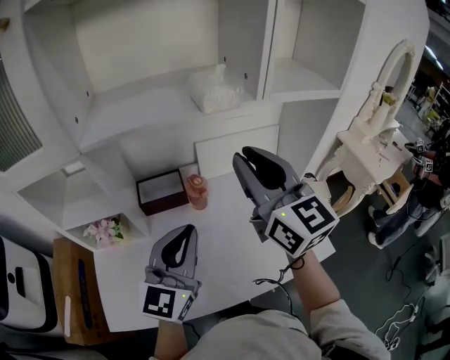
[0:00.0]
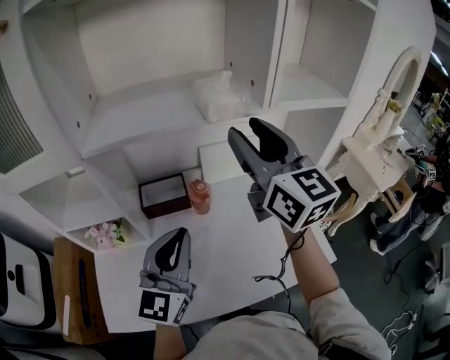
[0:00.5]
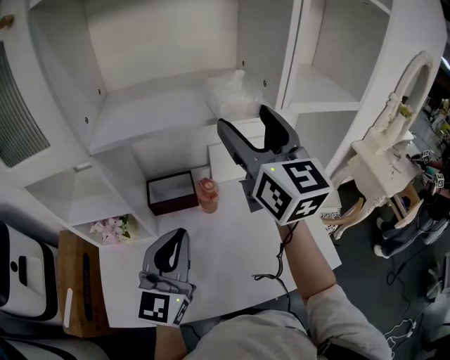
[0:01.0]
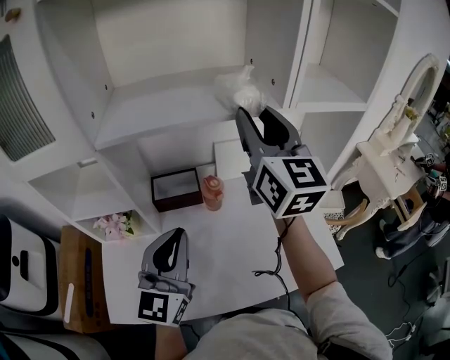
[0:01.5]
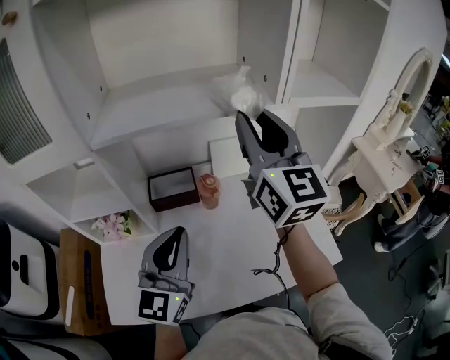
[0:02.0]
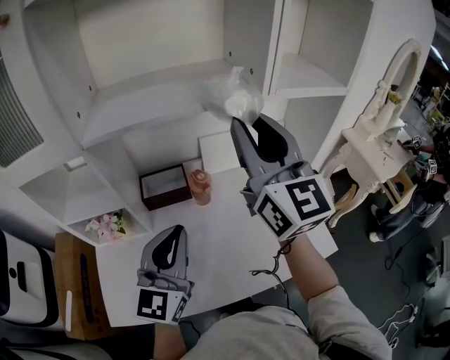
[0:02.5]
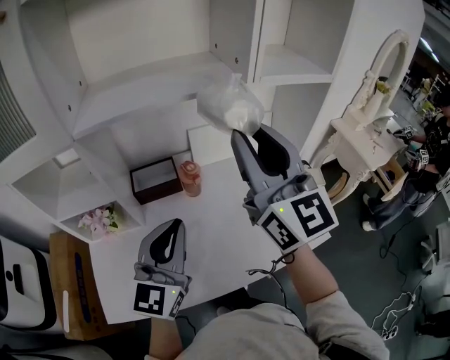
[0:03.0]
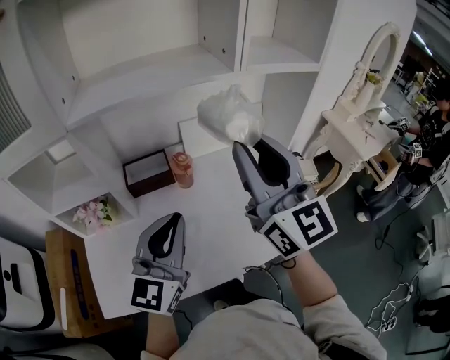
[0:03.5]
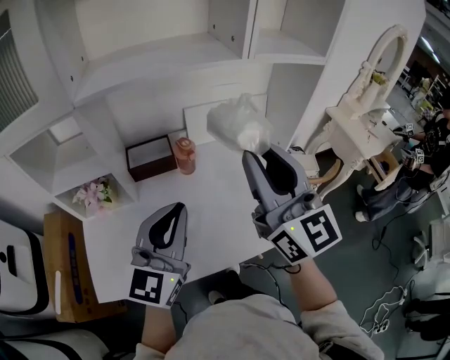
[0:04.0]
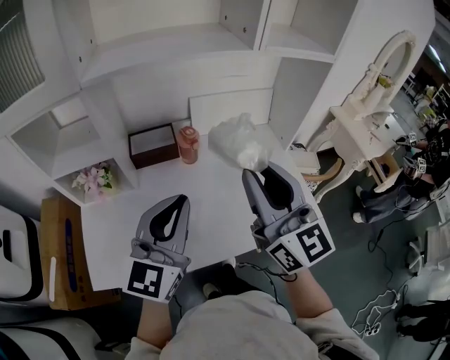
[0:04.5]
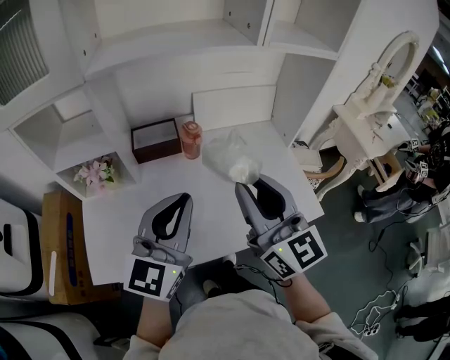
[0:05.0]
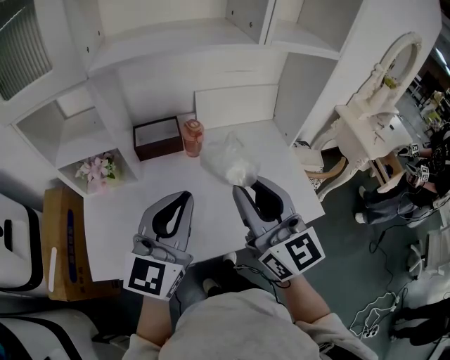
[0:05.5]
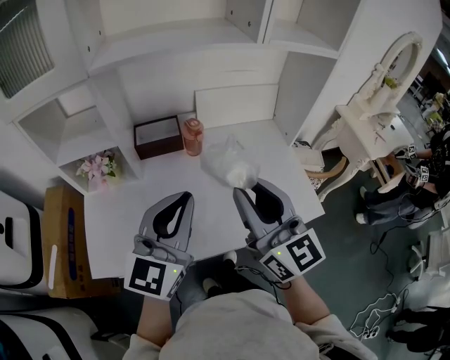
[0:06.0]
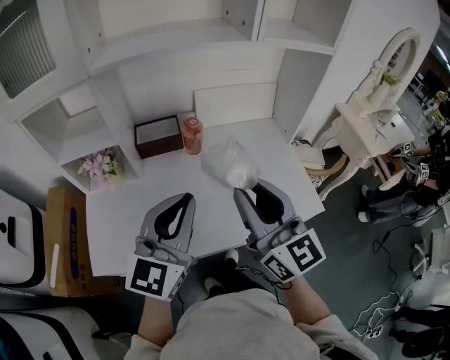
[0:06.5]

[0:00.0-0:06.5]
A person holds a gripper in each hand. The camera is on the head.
0:00.0 to 0:02.0: The right gripper shifts some 5 cm forward, and opens, then closes once more.
0:02.0 to 0:04.5: The right gripper shifts roughly 25 cm backward and downward, while the left gripper goes about 10 cm backward.
0:04.5 to 0:06.5: The right gripper heads backward, covering roughly 5 cm.

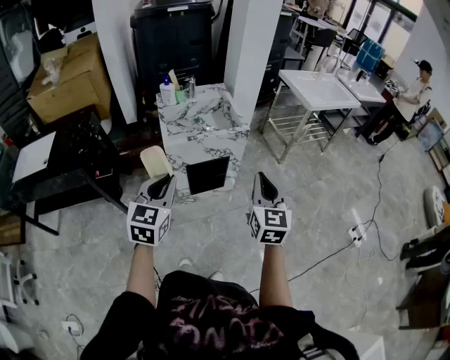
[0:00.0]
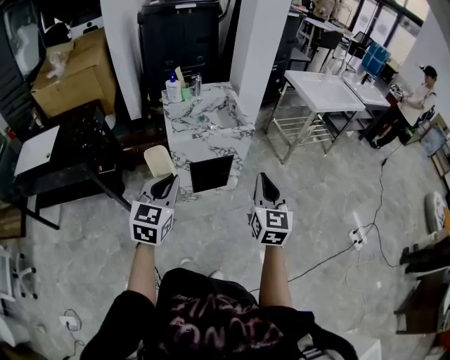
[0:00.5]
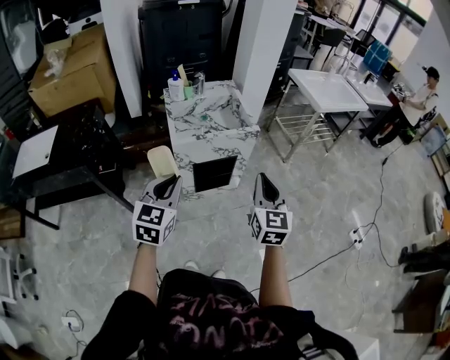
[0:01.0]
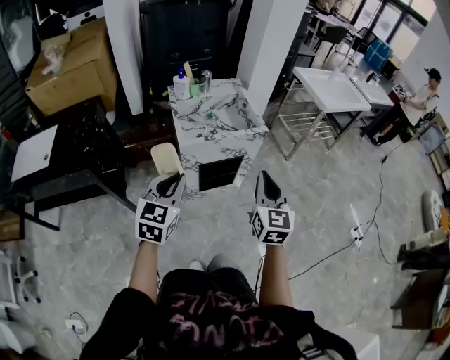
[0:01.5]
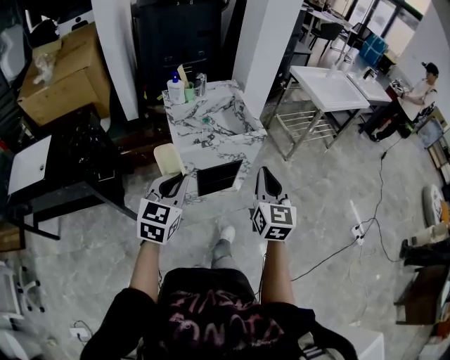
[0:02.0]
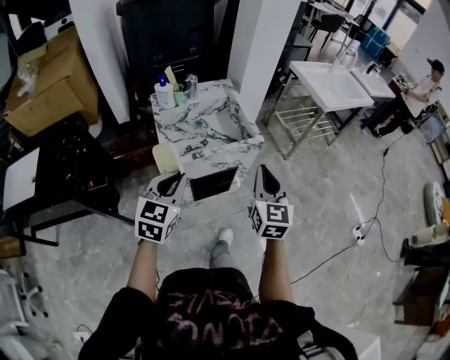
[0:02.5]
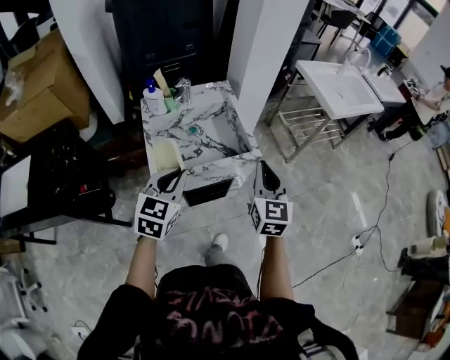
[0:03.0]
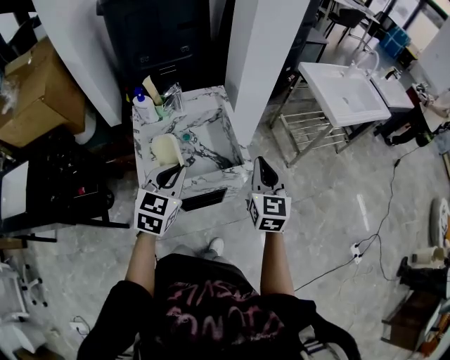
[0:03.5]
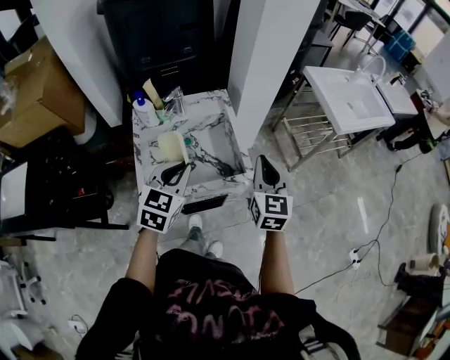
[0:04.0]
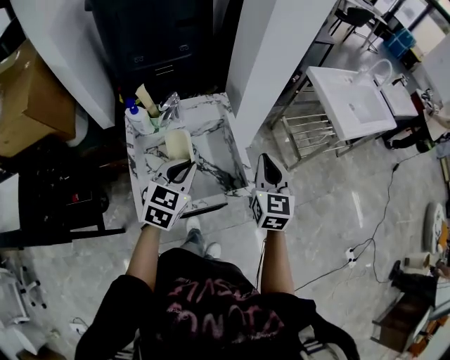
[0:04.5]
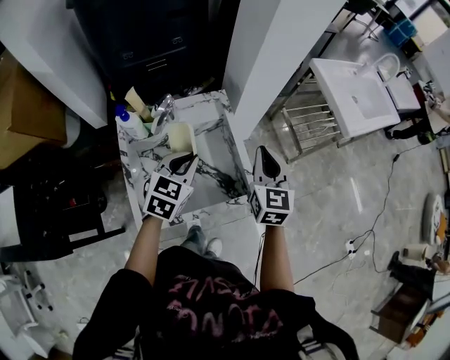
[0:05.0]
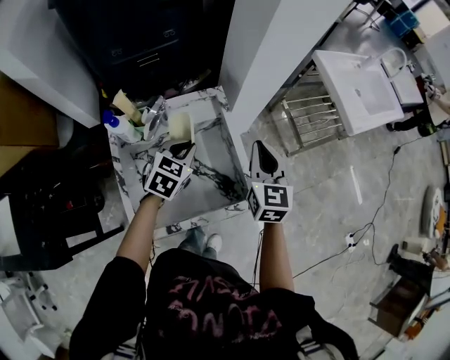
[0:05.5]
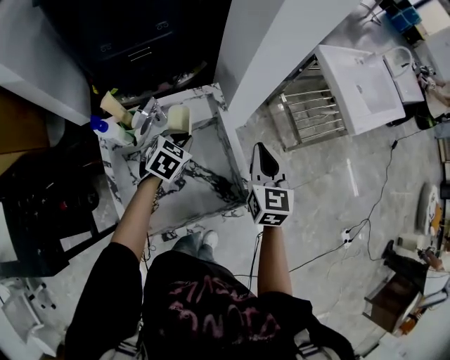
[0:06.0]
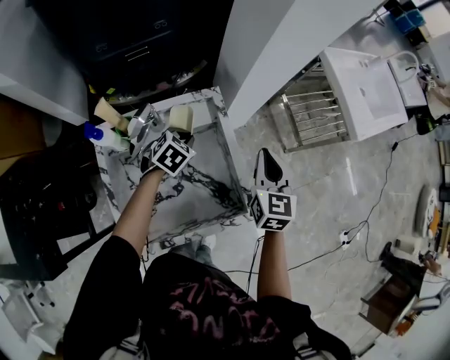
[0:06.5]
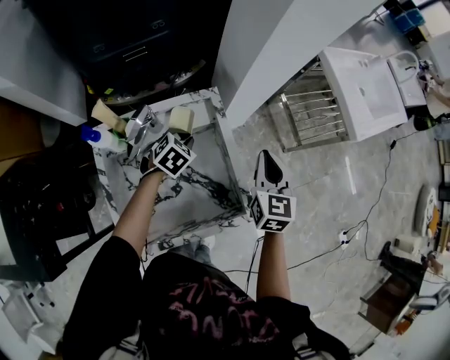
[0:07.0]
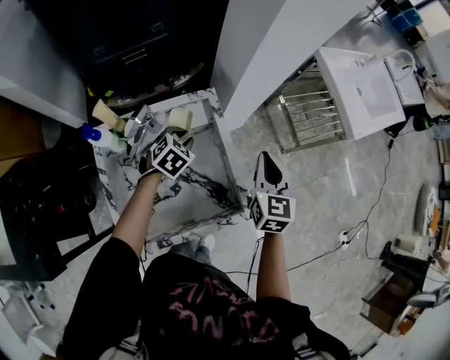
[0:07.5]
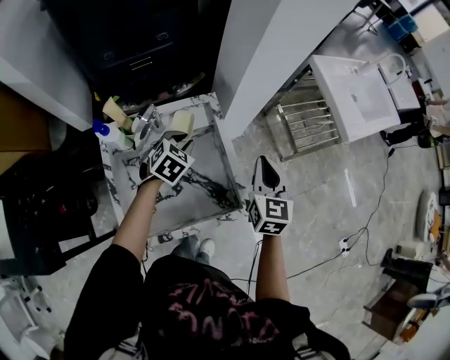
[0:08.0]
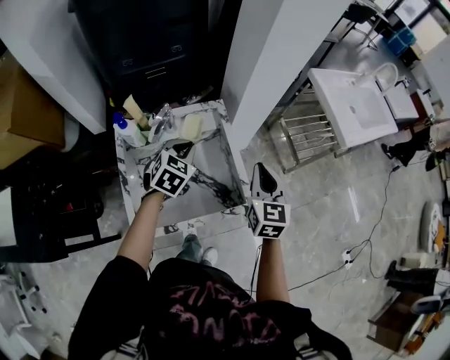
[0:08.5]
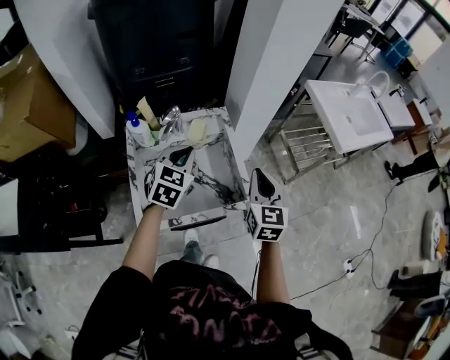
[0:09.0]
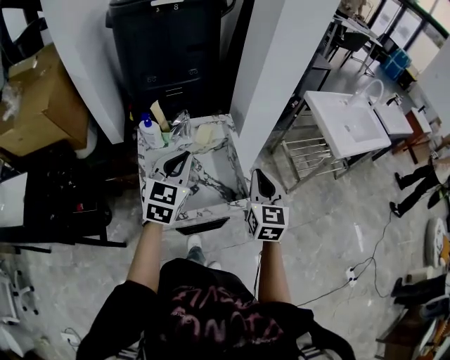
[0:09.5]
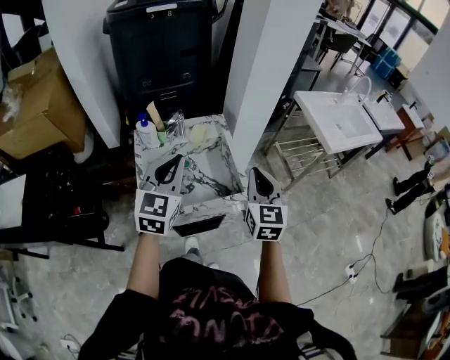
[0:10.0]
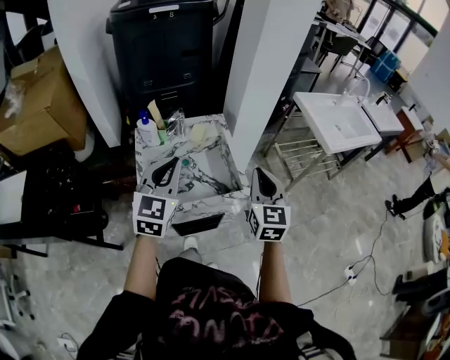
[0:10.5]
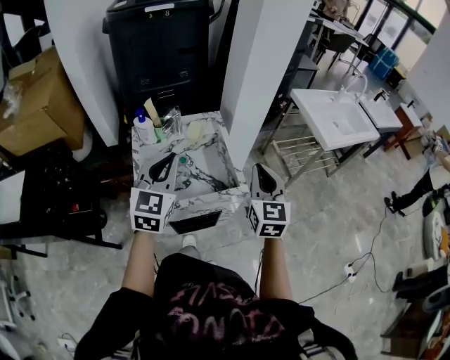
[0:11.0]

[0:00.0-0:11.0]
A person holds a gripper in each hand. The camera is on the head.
0:00.0 to 0:02.0: The left gripper shifts some 10 cm forward and to the left. Meanwhile the right gripper shifts about 15 cm to the left and forward.
0:02.0 to 0:03.5: The grippers both shift forward by about 30 cm.
0:03.5 to 0:05.5: The right gripper shifts some 20 cm forward. Meanwhile the left gripper goes some 30 cm forward and downward.
0:05.5 to 0:07.5: The left gripper shifts roughly 15 cm downward and forward, while the right gripper changes place by roughly 5 cm.
0:07.5 to 0:09.0: The right gripper shifts about 15 cm backward and upward, while the left gripper moves upward and backward, some 25 cm, and rotates roughly 30 degrees.
0:09.0 to 0:11.0: The right gripper moves backward and upward, approximately 10 cm; the left gripper goes some 20 cm backward and upward, and changes its angle by about 20 degrees.

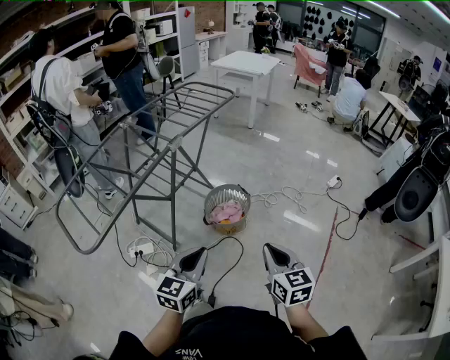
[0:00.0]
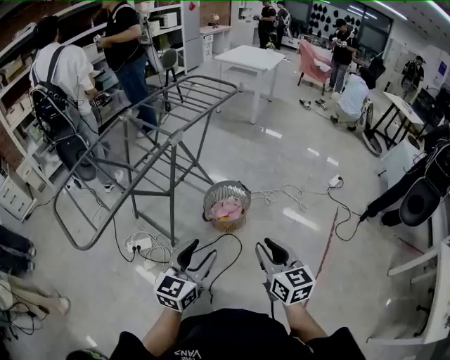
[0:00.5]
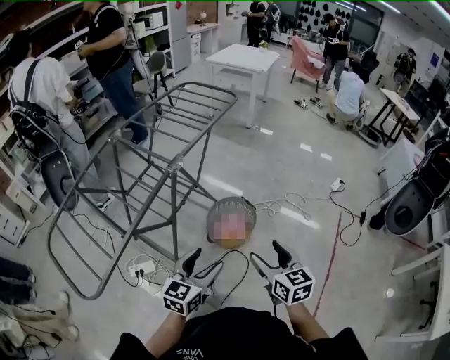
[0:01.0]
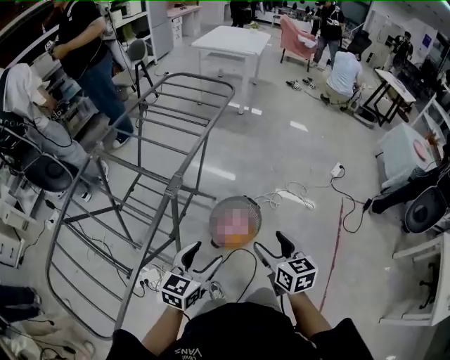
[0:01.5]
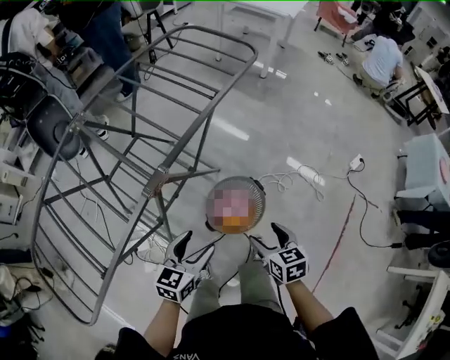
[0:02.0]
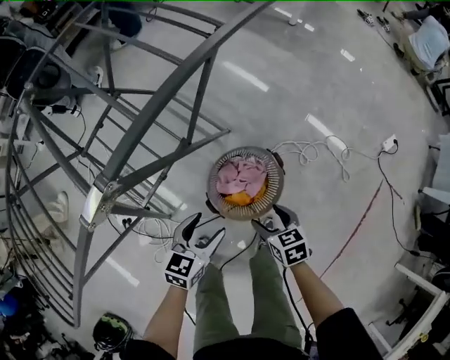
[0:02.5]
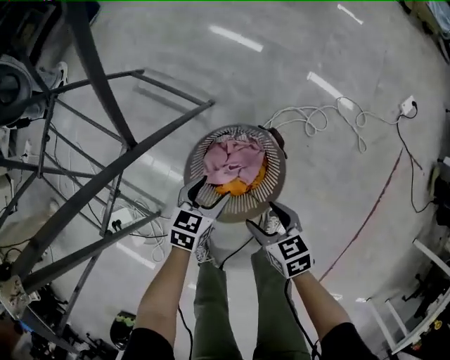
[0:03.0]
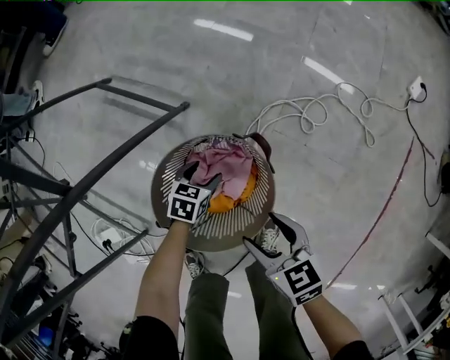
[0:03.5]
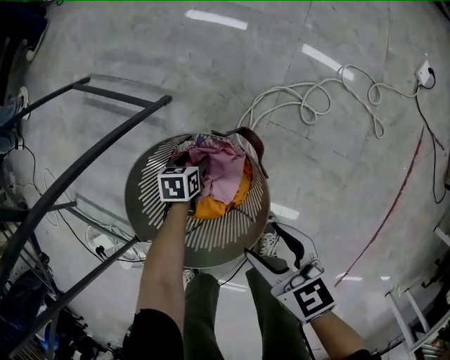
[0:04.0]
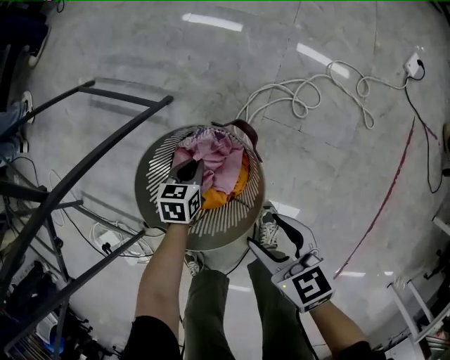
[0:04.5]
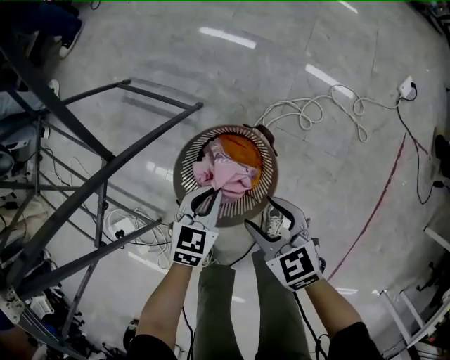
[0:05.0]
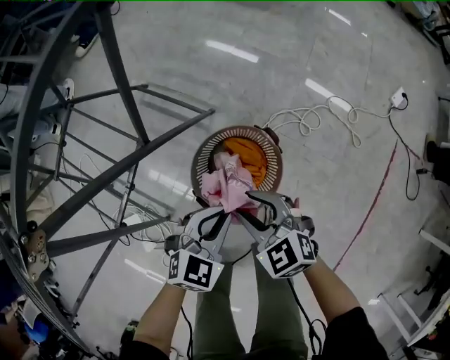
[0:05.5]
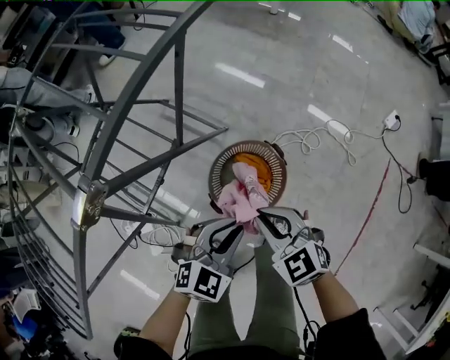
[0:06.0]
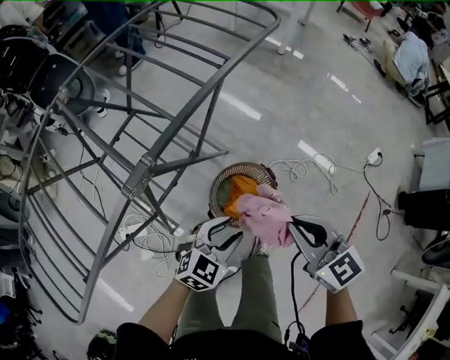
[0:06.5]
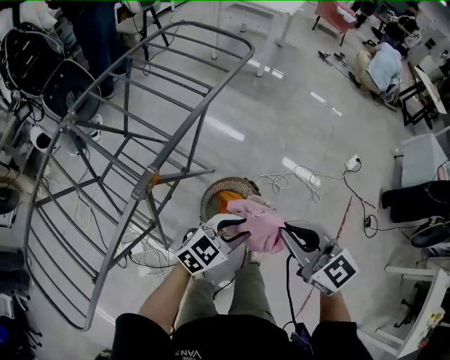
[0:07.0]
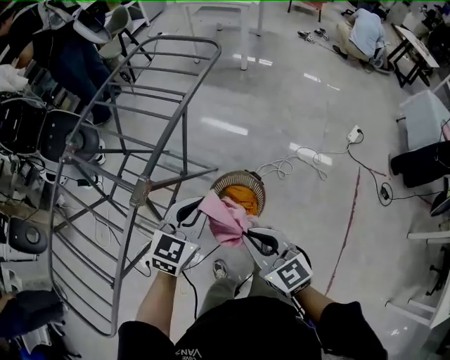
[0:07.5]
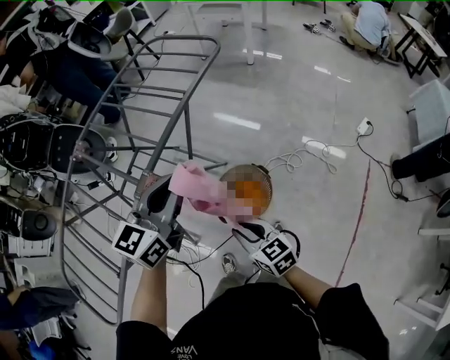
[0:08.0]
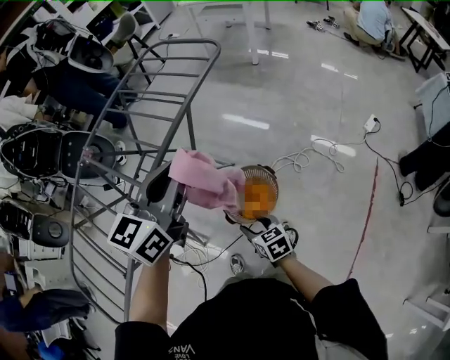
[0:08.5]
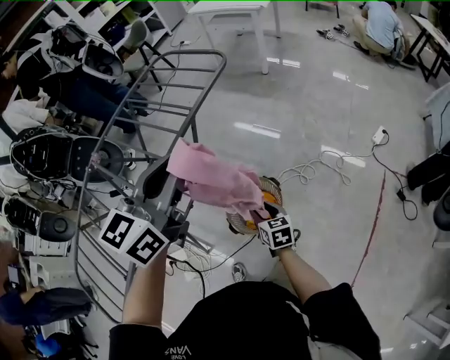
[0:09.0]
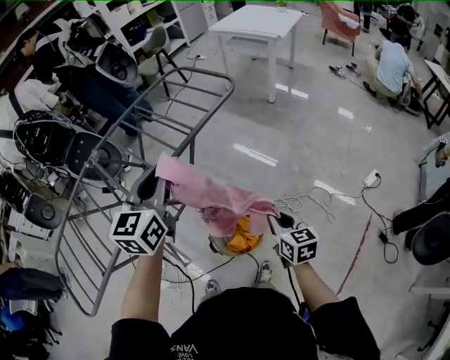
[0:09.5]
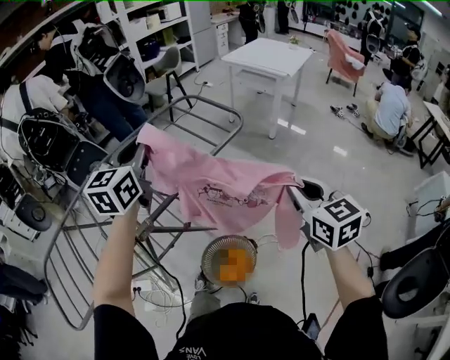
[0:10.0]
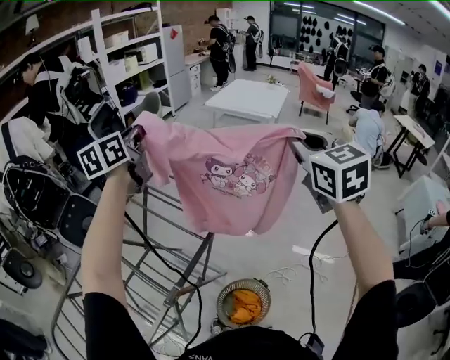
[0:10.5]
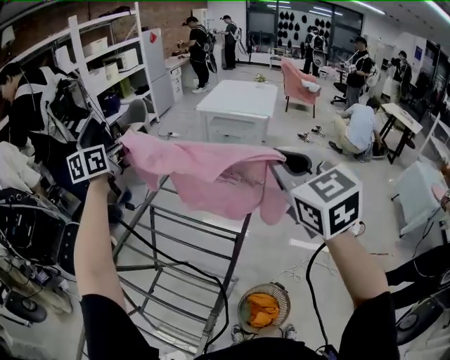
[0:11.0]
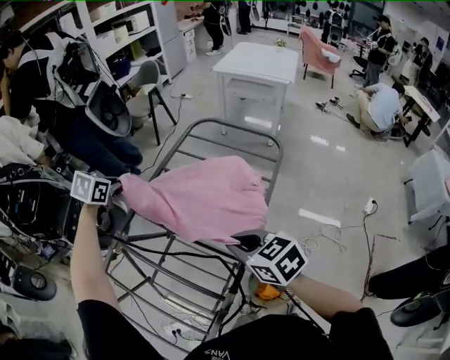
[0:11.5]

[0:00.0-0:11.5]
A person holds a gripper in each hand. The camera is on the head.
0:00.0 to 0:02.0: The grippers both shift forward and downward by about 40 cm. The left gripper opens up. The right gripper swivels approximately 30 degrees, and opens.
0:02.0 to 0:04.0: The right gripper travels downward by about 40 cm. The left gripper moves downward, roughly 70 cm, and points its fingers approximately 40 degrees further downward.
0:04.0 to 0:06.0: The left gripper heads upward, covering about 60 cm, rotates around the line of its fingers by approximately 50 degrees, clockwise from behind, and closes. The right gripper travels upward and to the left by roughly 35 cm, rolls counterclockwise, seen from behind, by some 40 degrees, and closes up.
0:06.0 to 0:07.5: The right gripper heads upward and backward, covering approximately 25 cm, and turns by about 30 degrees. Meanwhile the left gripper moves upward, roughly 25 cm, and opens and closes again.
0:07.5 to 0:09.5: The right gripper heads to the right and forward, covering approximately 20 cm, and opens and closes again, while the left gripper travels upward and forward by roughly 20 cm, and turns by roughly 40 degrees.
0:09.5 to 0:11.5: Both grippers are carried to the left and forward, about 50 cm. The right gripper changes its angle by roughly 20 degrees. The left gripper tips its fingers downward by some 40 degrees.
